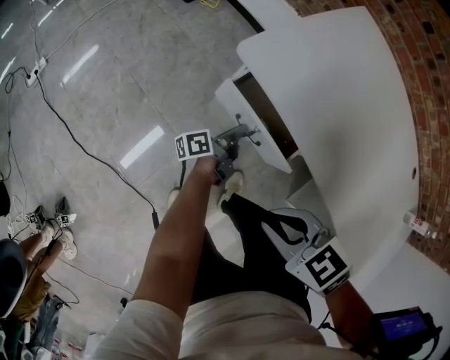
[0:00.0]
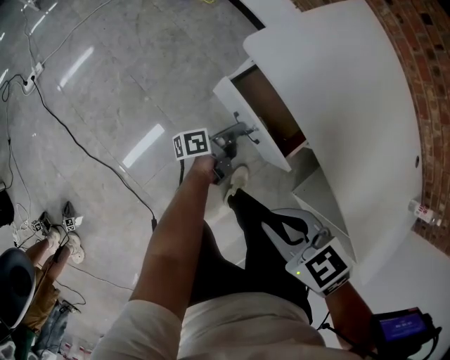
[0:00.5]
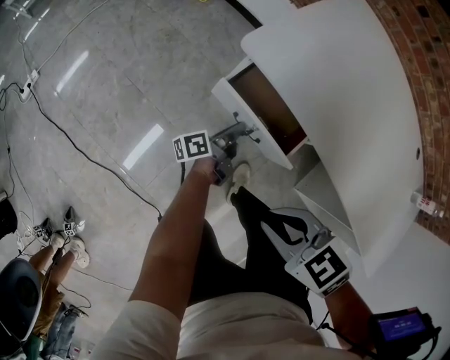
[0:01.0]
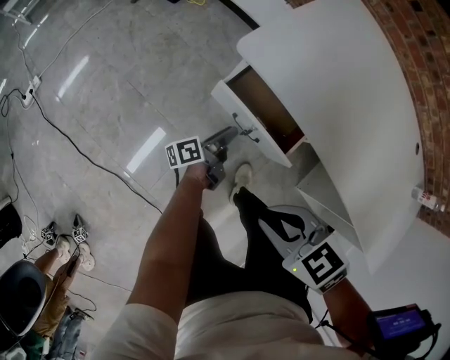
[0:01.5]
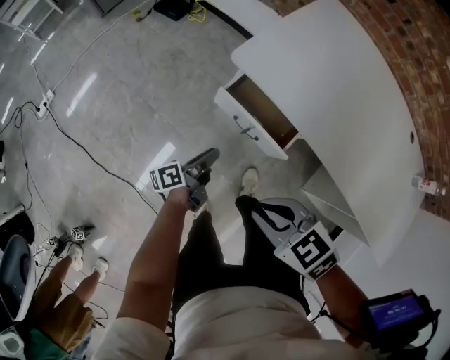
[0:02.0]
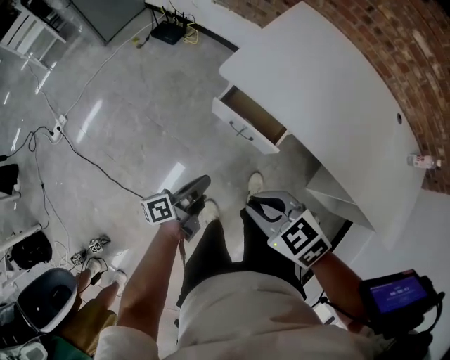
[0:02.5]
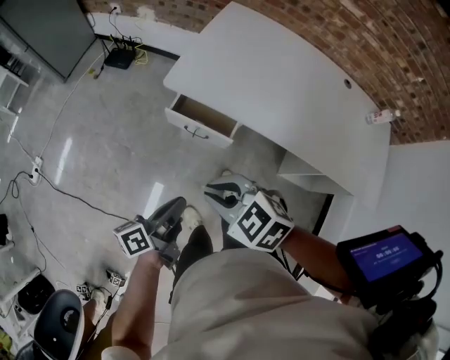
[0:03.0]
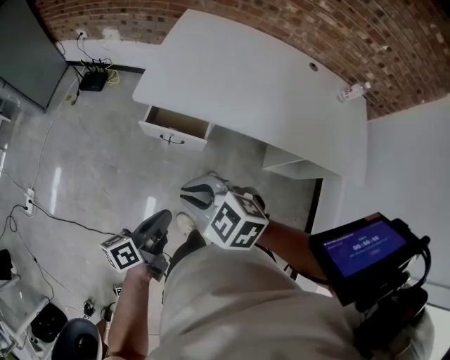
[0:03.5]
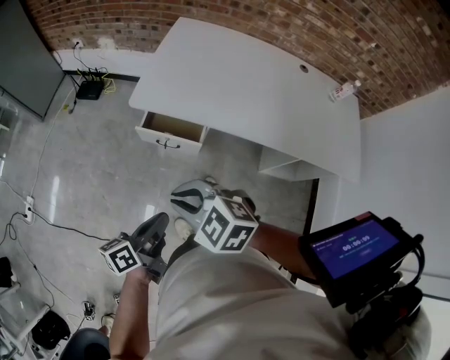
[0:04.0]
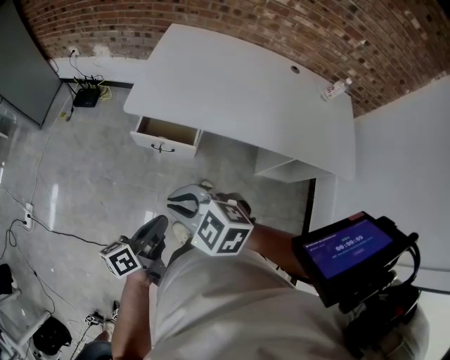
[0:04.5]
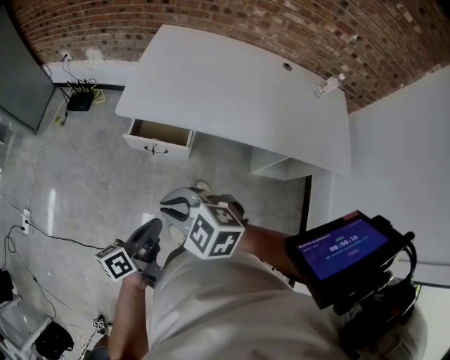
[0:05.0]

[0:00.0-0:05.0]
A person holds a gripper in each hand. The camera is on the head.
0:00.0 to 0:02.5: The right gripper travels upward and to the left by some 15 cm, while the left gripper heads upward, to the left and backward, covering approximately 30 cm, and opens and closes again.
0:02.5 to 0:05.0: The right gripper moves upward and backward, approximately 10 cm. Meanwhile the left gripper is displaced upward and backward by approximately 20 cm, and turns by roughly 30 degrees.

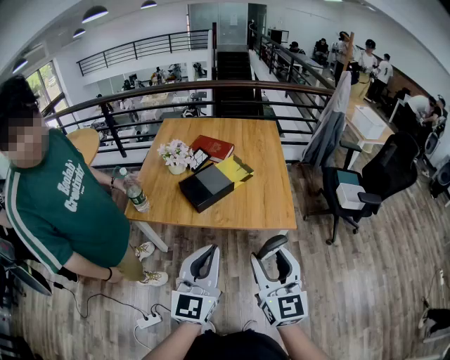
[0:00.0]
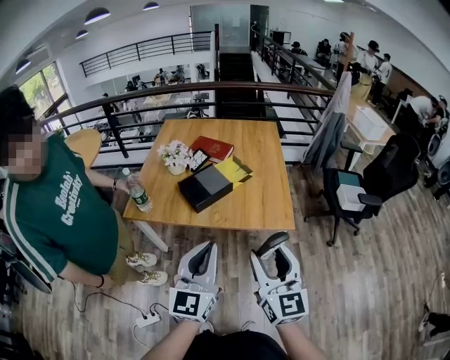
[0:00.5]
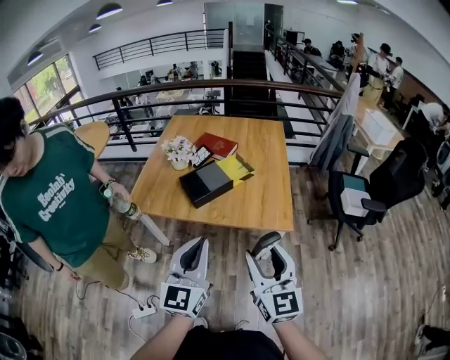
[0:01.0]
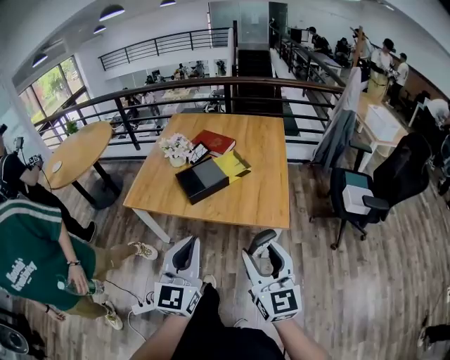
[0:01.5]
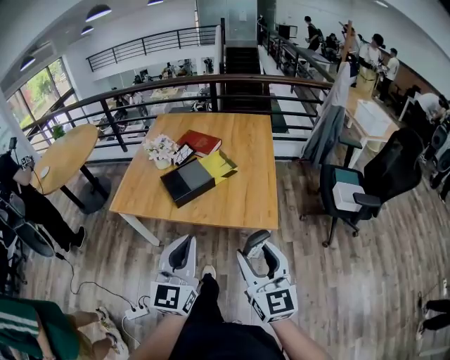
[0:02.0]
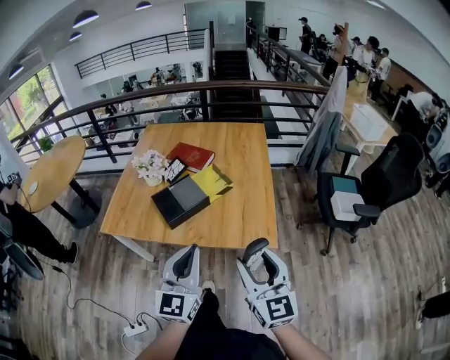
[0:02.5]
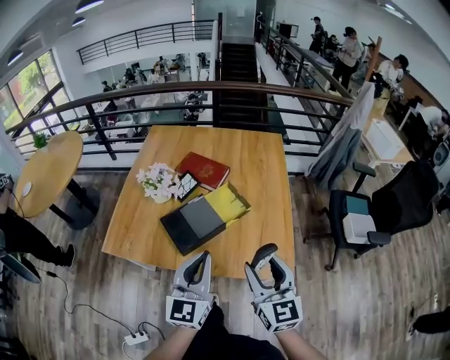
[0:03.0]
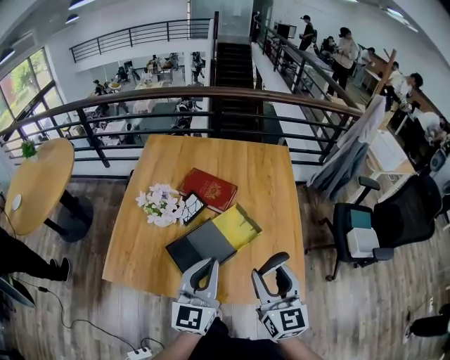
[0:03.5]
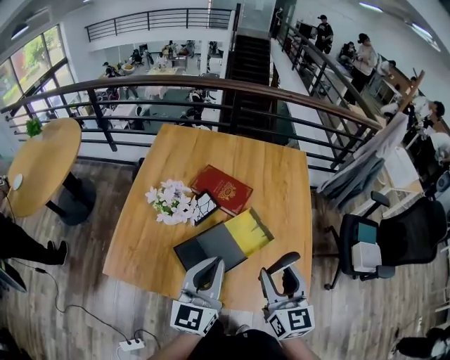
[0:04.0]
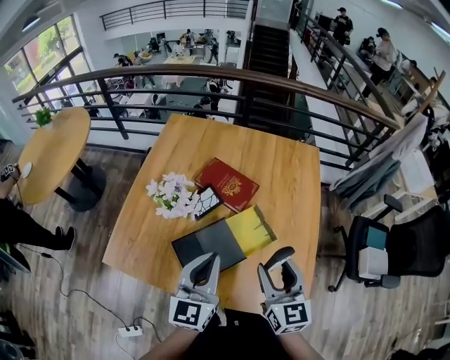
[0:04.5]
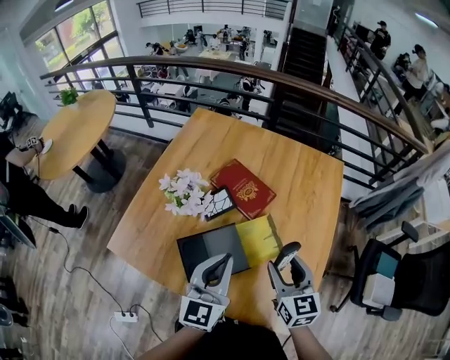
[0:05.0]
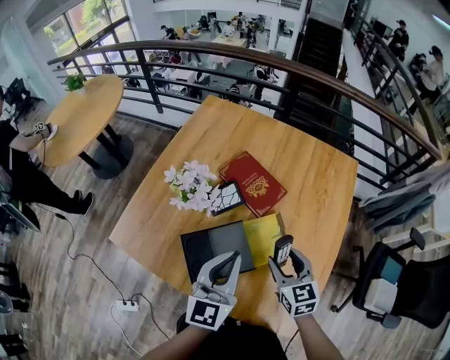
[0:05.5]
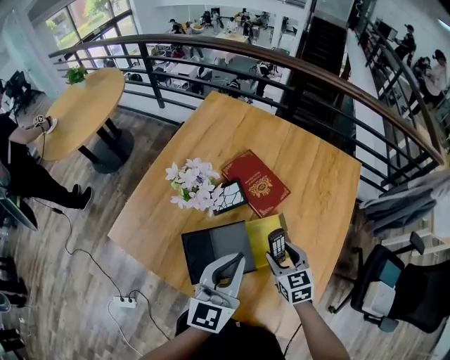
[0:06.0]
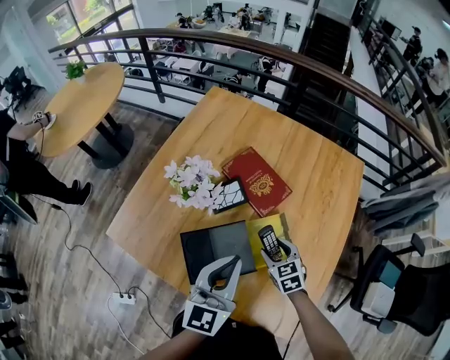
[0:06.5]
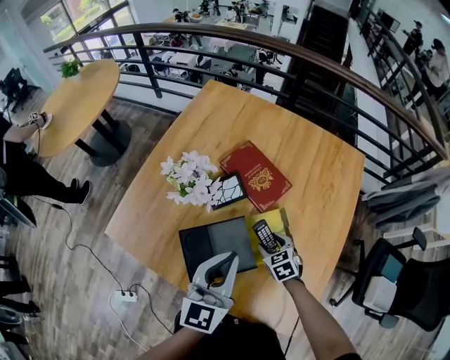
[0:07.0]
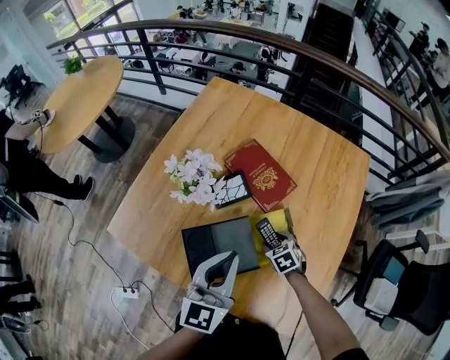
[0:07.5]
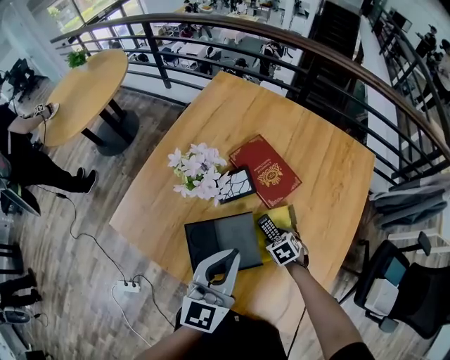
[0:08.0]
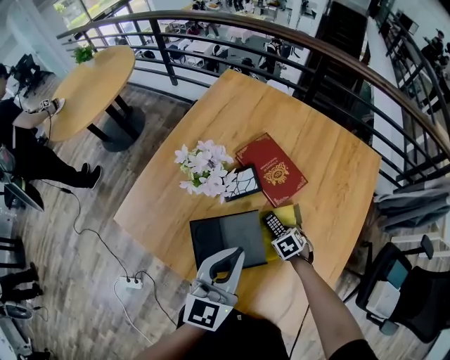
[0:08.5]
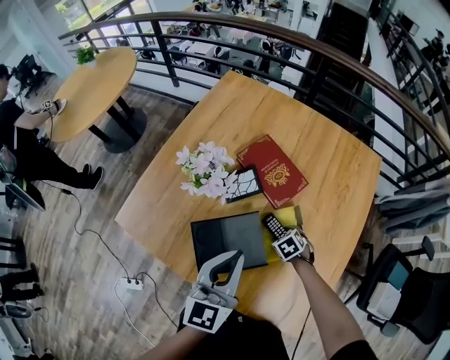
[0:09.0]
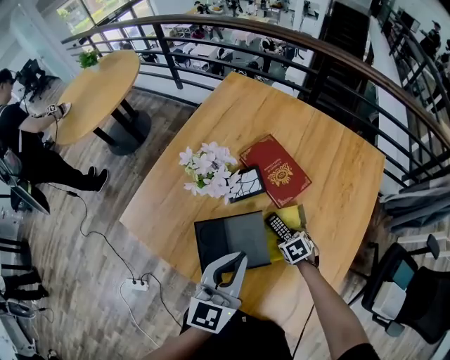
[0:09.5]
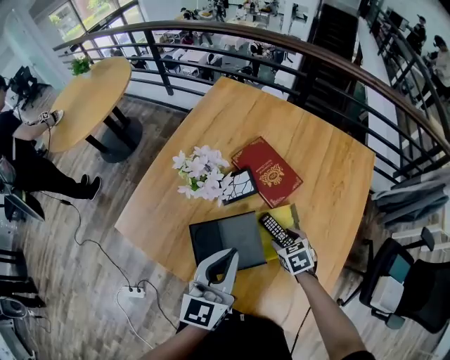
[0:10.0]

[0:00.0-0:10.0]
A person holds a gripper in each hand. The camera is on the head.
0:00.0 to 0:02.0: Both grippers move to the right, some 10 cm.
0:02.0 to 0:04.0: The two grippers travel together, forward, about 40 cm.
0:04.0 to 0:06.0: The left gripper travels forward, to the right and downward by approximately 10 cm. The right gripper heads downward and forward, covering roughly 25 cm, and turns by roughly 40 degrees.
0:06.0 to 0:08.0: The right gripper shifts about 15 cm downward, and tips its fingers downward by approximately 30 degrees.
0:08.0 to 0:10.0: The right gripper is displaced upward by approximately 5 cm.

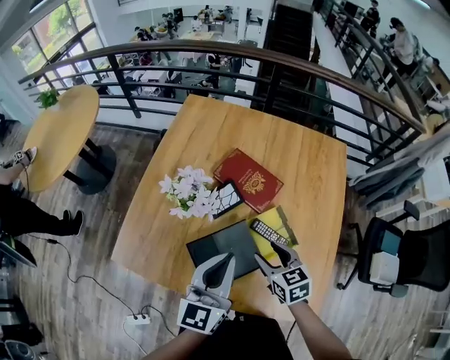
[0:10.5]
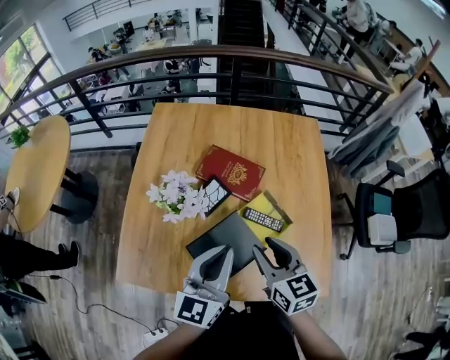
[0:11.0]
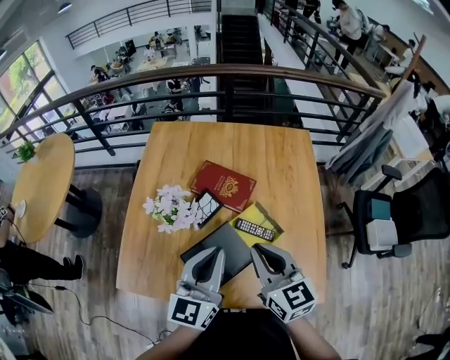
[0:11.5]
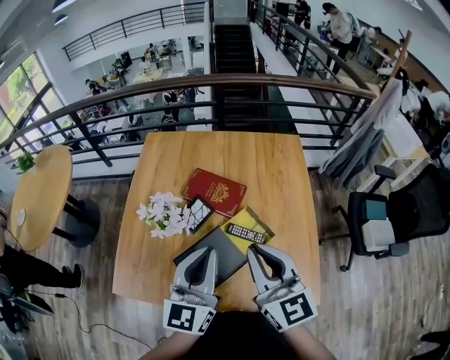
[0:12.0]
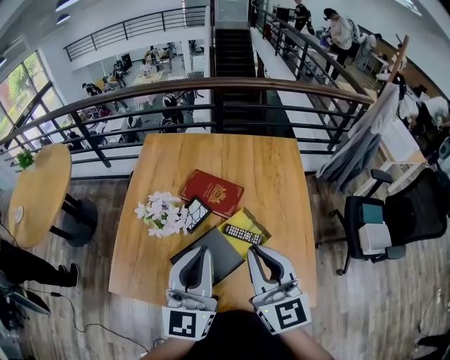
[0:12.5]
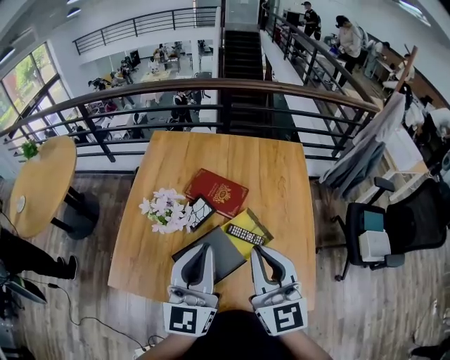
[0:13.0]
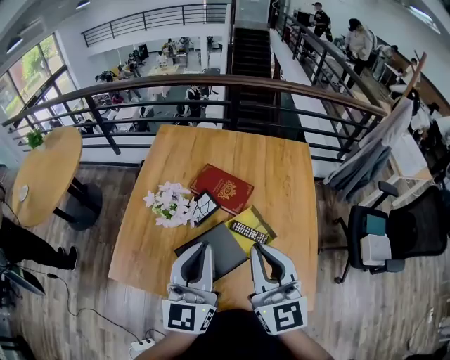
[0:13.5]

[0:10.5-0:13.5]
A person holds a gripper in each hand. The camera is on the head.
0:10.5 to 0:12.0: The left gripper travels upward by roughly 10 cm; the right gripper is displaced upward by about 25 cm, points its fingers approximately 40 degrees further upward, and closes up.
0:12.0 to 0:13.5: There are only small adjustments of the grippers.

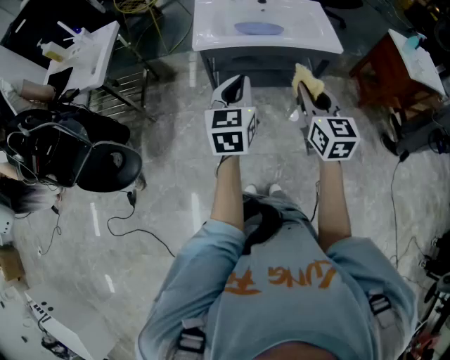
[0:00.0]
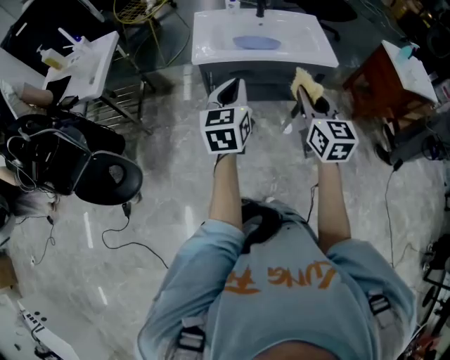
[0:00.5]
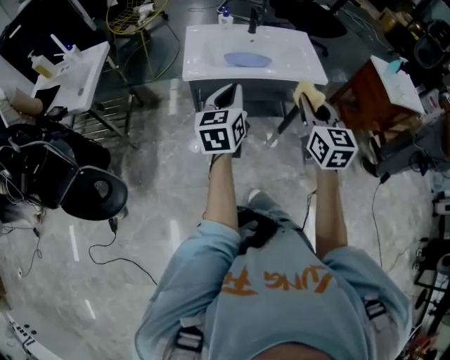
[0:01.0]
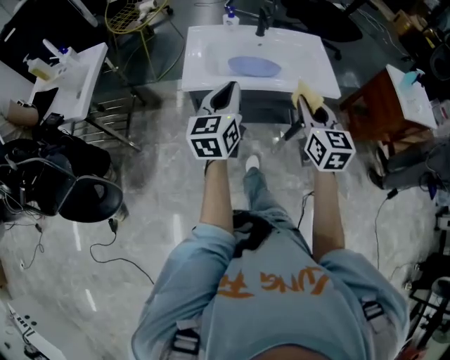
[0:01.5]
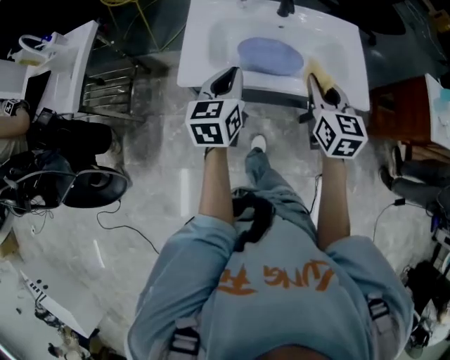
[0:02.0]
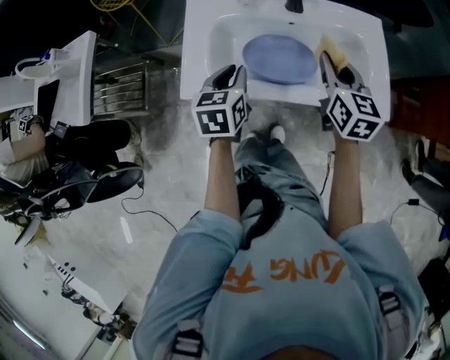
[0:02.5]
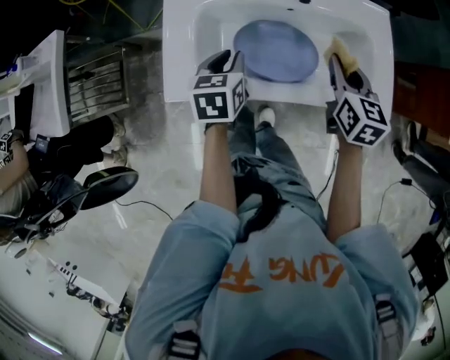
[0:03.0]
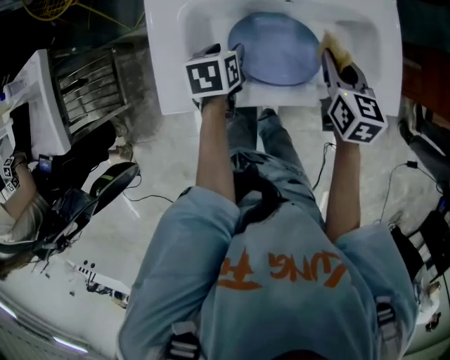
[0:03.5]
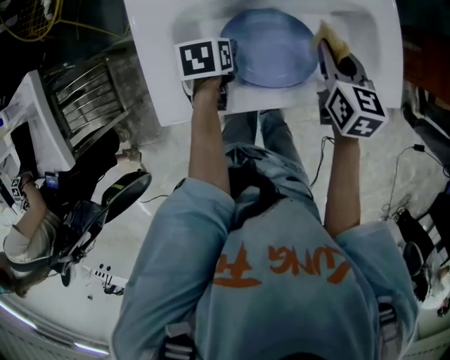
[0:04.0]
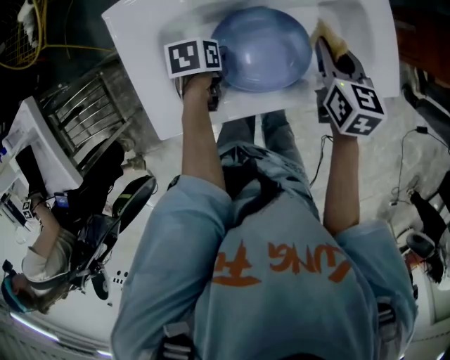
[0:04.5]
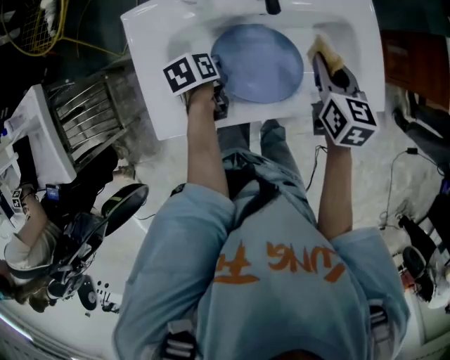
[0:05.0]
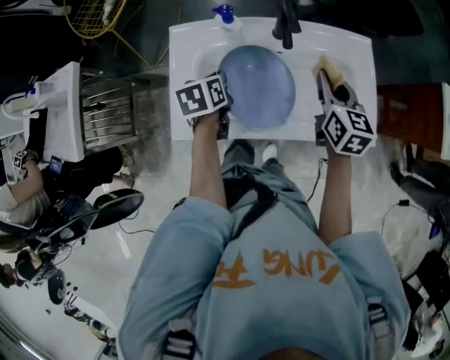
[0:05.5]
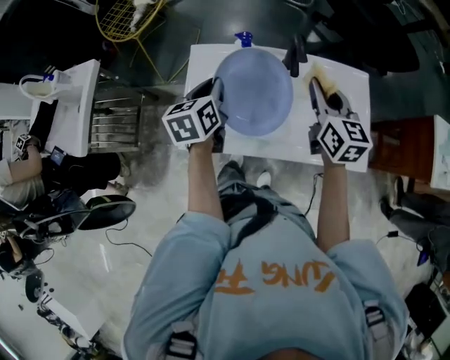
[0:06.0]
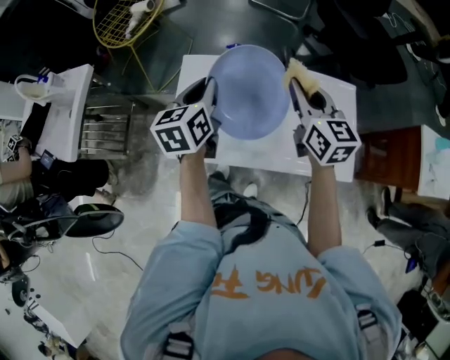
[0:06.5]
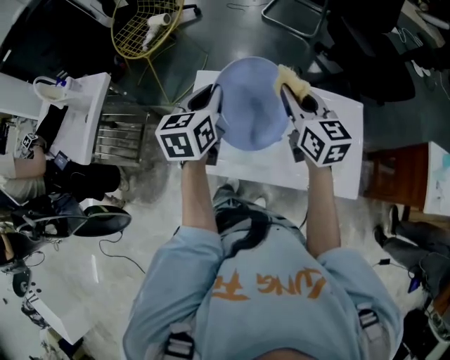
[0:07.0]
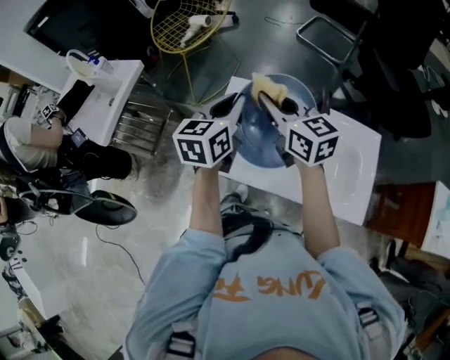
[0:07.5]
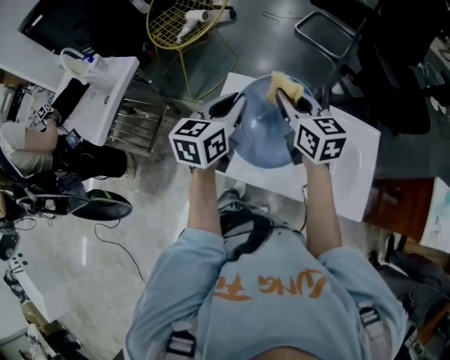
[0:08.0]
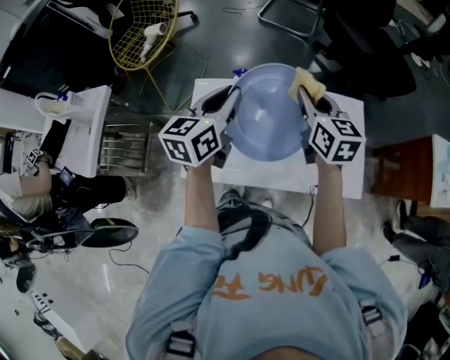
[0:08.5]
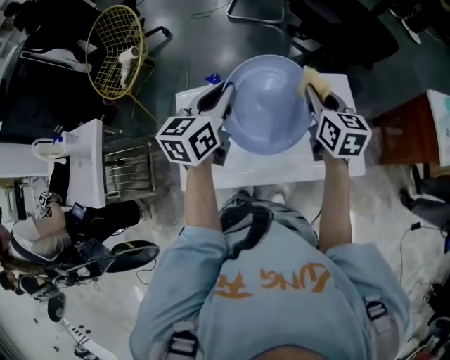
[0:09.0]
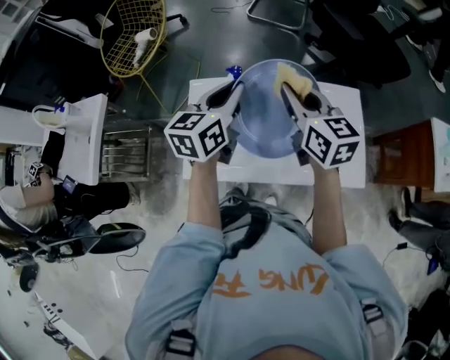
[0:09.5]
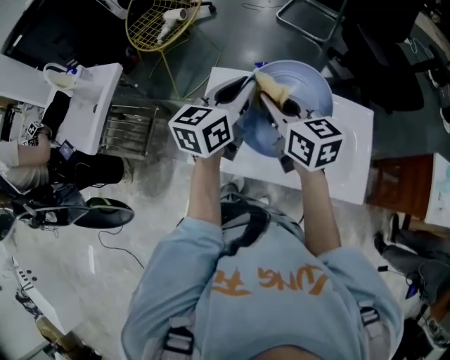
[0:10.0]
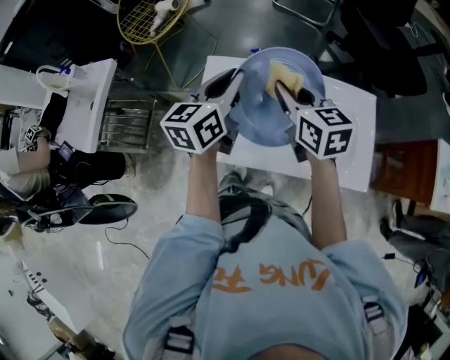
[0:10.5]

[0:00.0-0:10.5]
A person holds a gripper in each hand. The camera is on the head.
0:00.0 to 0:02.0: The grippers both shift forward by some 35 cm.
0:02.0 to 0:04.0: The right gripper moves forward and downward, some 25 cm, and rotates some 20 degrees, while the left gripper goes about 30 cm downward and forward, angles its fingers downward, by some 50 degrees, and opens up.
0:04.0 to 0:06.5: Both grippers travel together upward, roughly 25 cm. The left gripper tilts its fingers approximately 40 degrees upward, and closes its fingers, while the right gripper changes its angle by approximately 30 degrees.
0:06.5 to 0:08.5: The right gripper goes to the left and returns, some 20 cm each way. The left gripper shifts some 5 cm upward.
0:08.5 to 0:10.5: The right gripper moves left and right over roughly 25 cm, changing direction 2 times.
